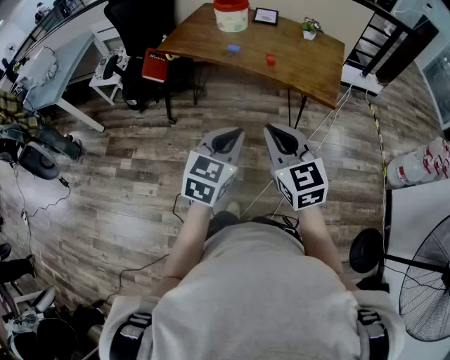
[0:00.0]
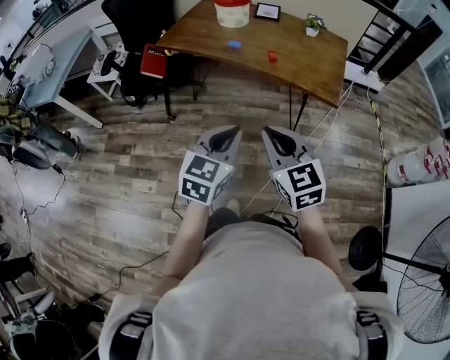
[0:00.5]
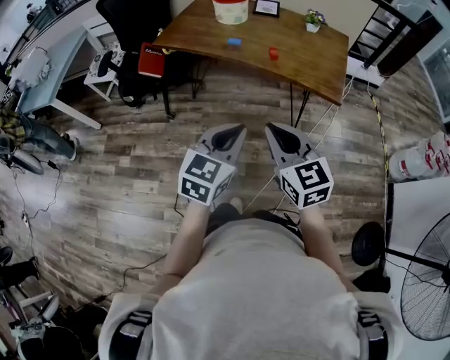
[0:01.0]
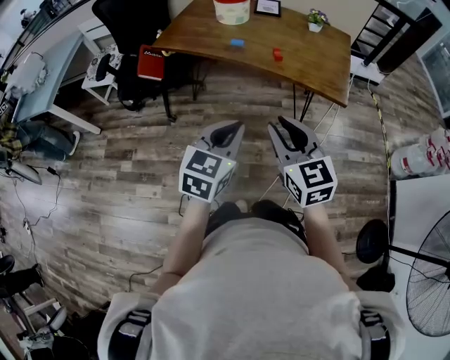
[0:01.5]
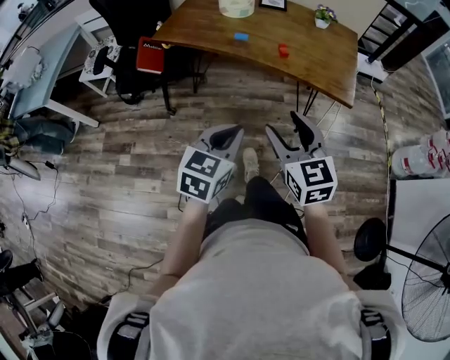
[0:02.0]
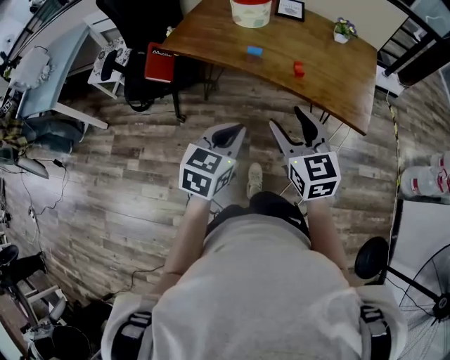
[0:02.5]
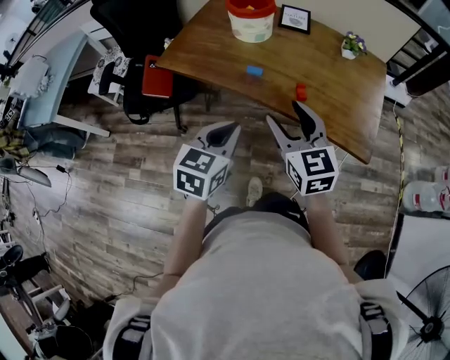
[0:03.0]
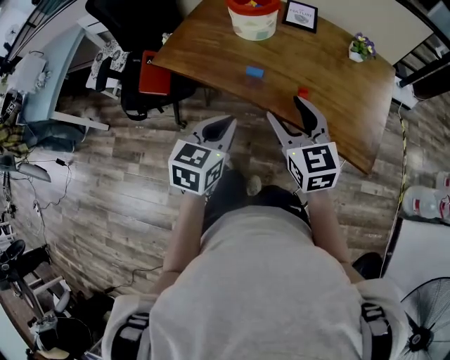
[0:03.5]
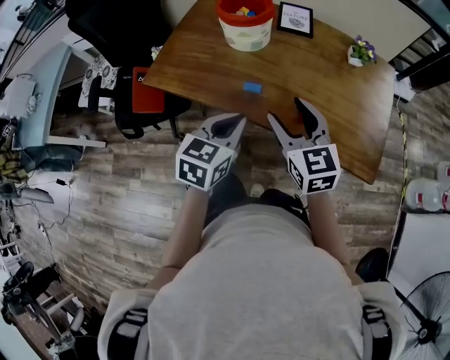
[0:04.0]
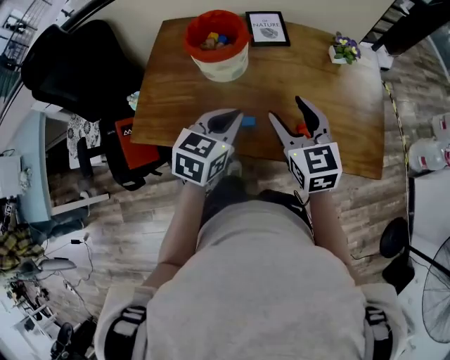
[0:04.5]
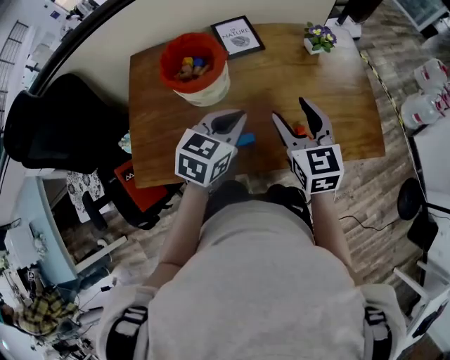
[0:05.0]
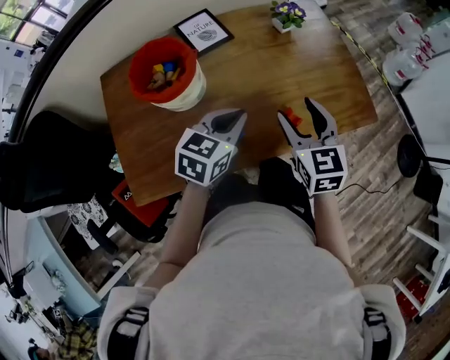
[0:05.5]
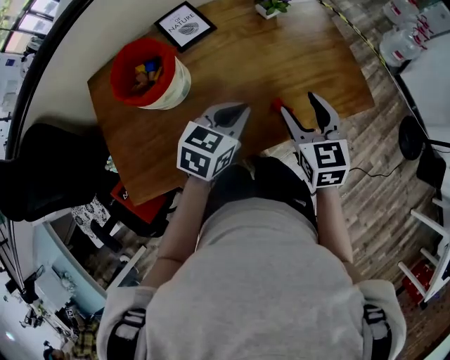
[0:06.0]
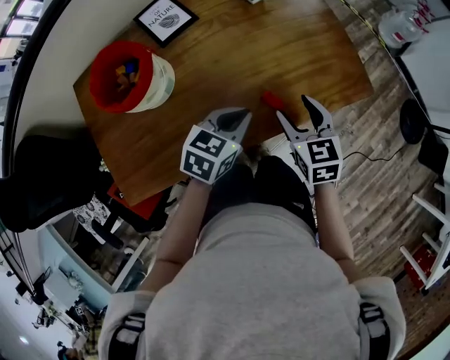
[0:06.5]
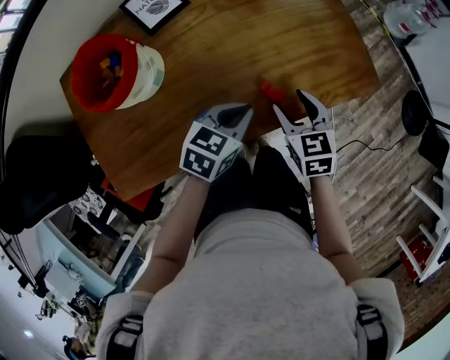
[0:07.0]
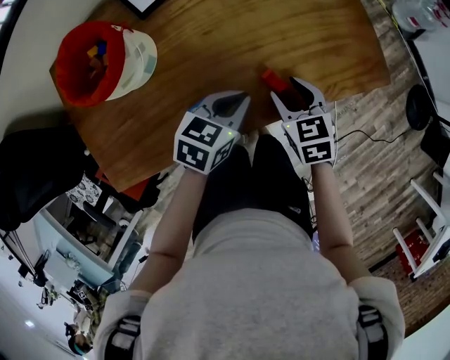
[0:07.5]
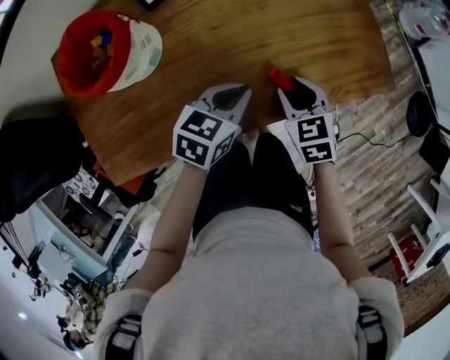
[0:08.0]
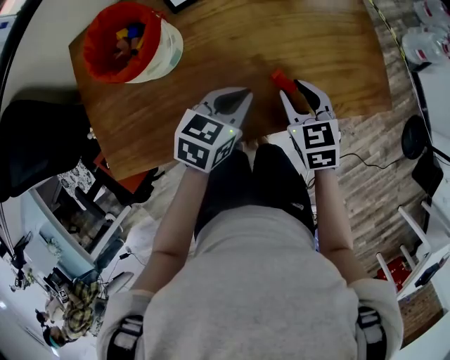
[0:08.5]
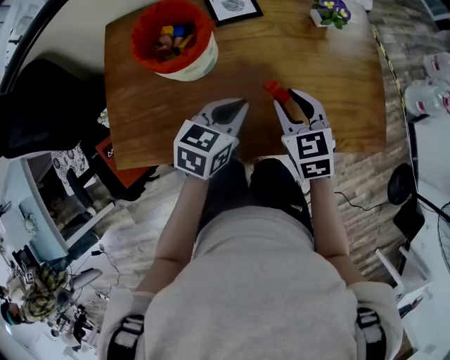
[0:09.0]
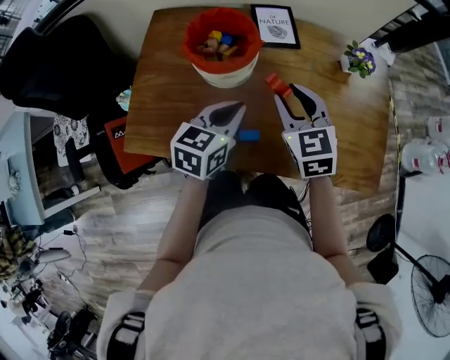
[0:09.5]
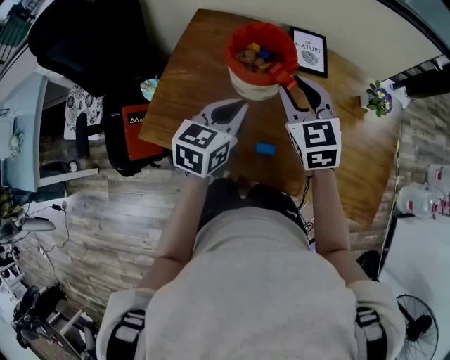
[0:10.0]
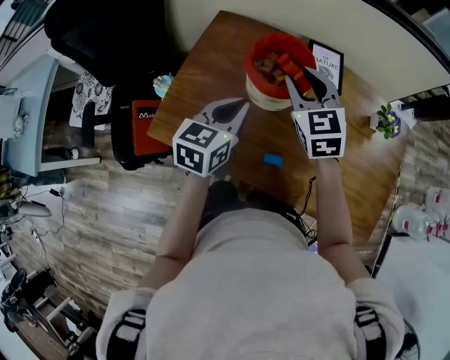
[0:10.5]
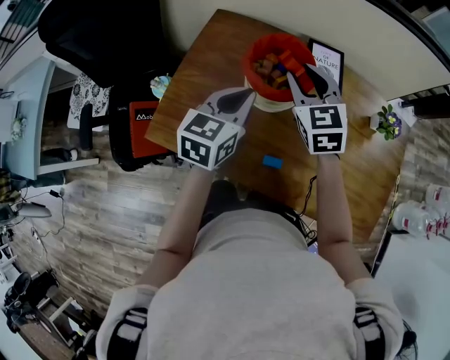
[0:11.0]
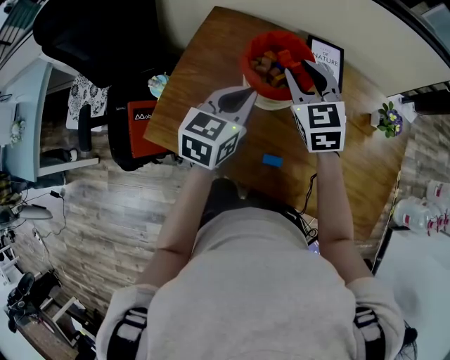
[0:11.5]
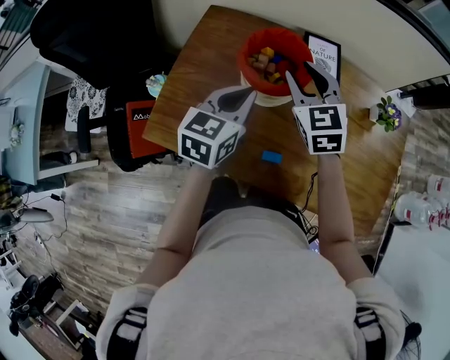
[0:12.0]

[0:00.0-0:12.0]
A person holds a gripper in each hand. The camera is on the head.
0:00.0 to 0:02.0: The left gripper shifts about 10 cm forward and to the left, while the right gripper goes some 10 cm forward, and opens its fingers.
0:02.0 to 0:04.0: The two grippers go approximately 35 cm forward.
0:04.0 to 0:06.0: The right gripper changes place by about 15 cm, and turns by about 50 degrees; the left gripper shifts by some 20 cm, and rotates approximately 50 degrees.
0:06.0 to 0:08.0: The left gripper goes roughly 10 cm downward; the right gripper is displaced downward by roughly 15 cm, changes its angle by some 20 degrees, and closes its fingers.
0:08.0 to 0:10.0: The right gripper shifts by roughly 35 cm, and changes its angle by roughly 50 degrees. The left gripper ends up about 30 cm from where it was, and changes its angle by about 50 degrees.
0:10.0 to 0:12.0: The two grippers go some 5 cm forward.

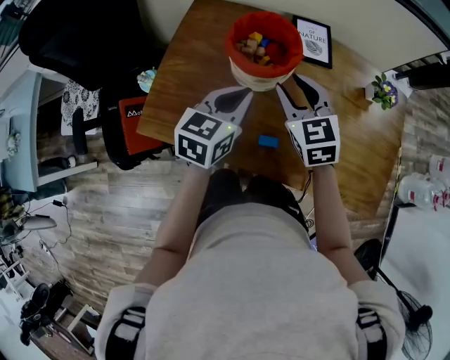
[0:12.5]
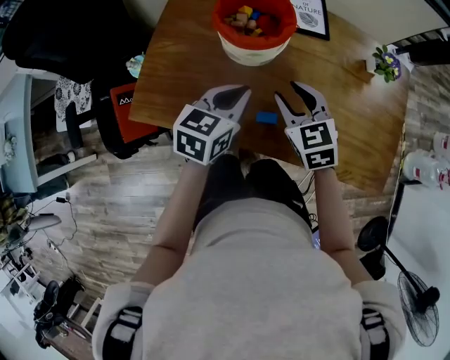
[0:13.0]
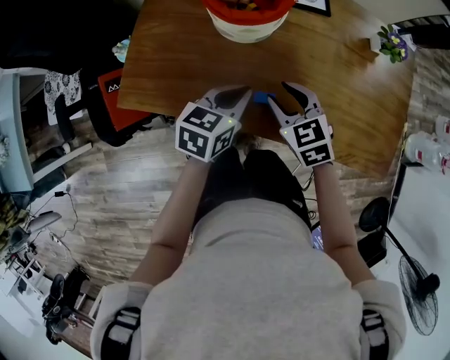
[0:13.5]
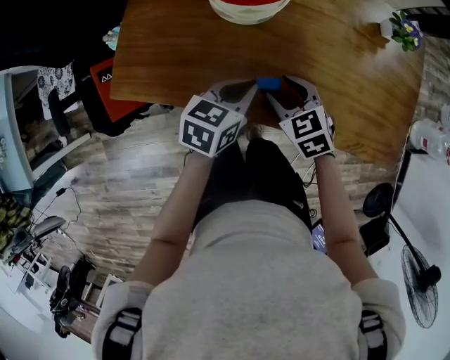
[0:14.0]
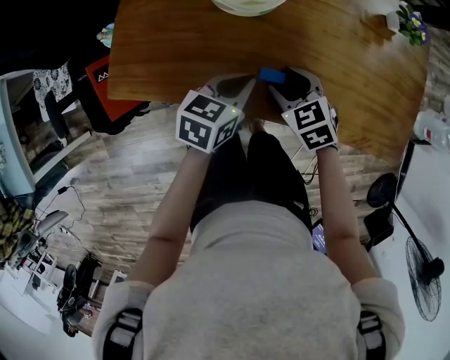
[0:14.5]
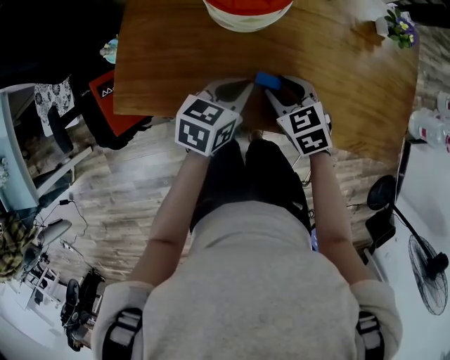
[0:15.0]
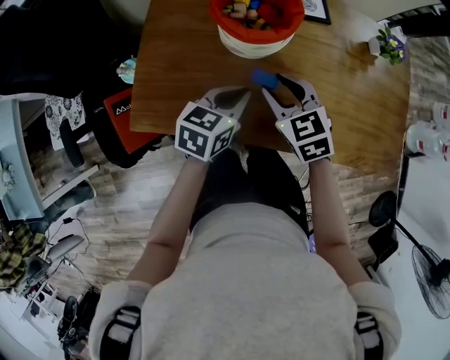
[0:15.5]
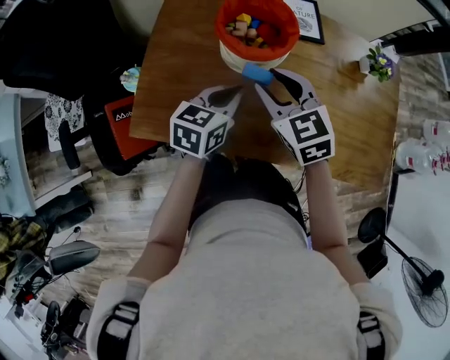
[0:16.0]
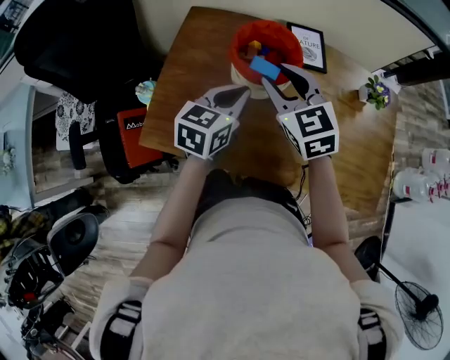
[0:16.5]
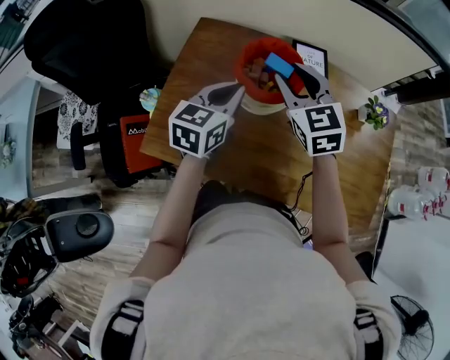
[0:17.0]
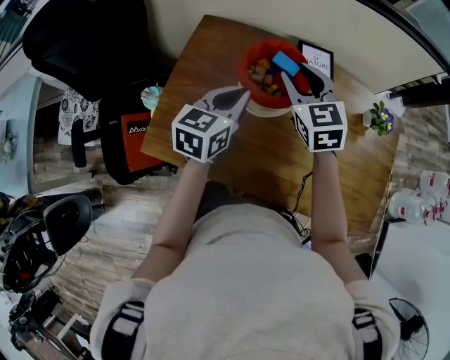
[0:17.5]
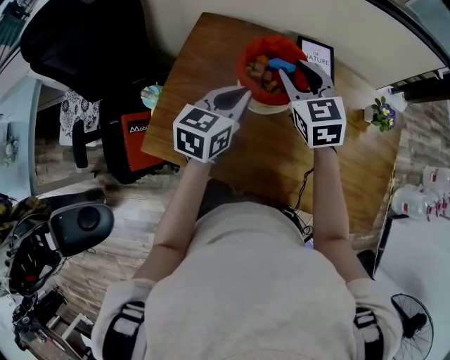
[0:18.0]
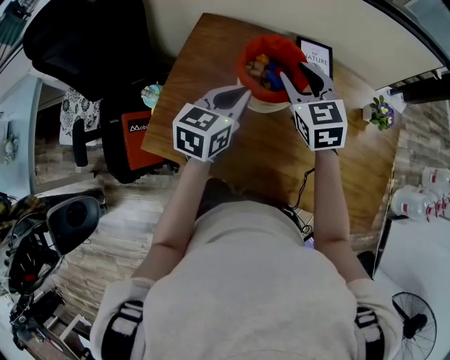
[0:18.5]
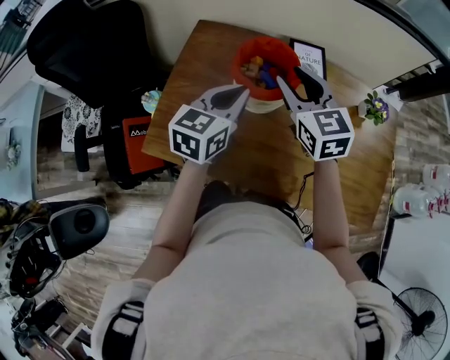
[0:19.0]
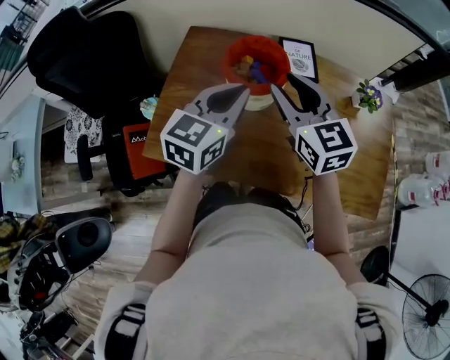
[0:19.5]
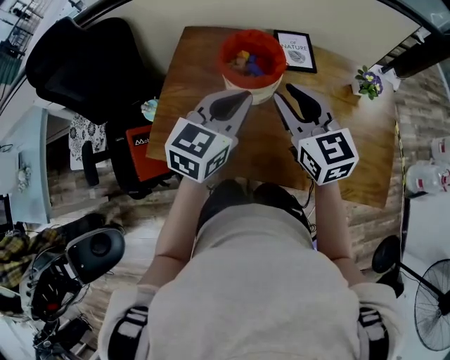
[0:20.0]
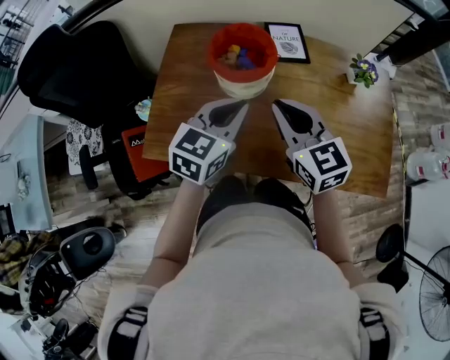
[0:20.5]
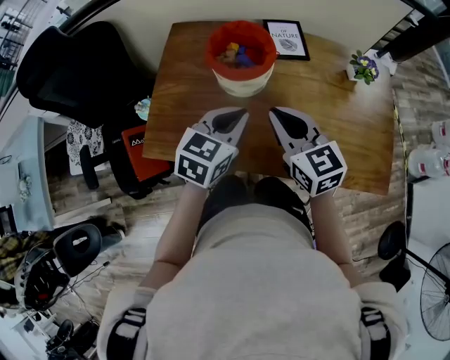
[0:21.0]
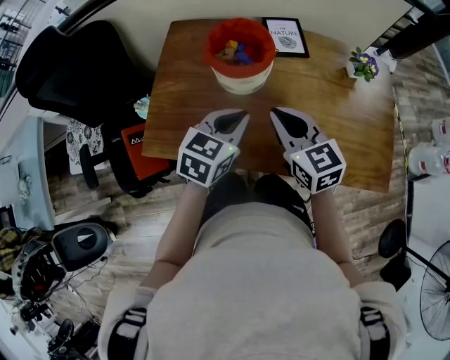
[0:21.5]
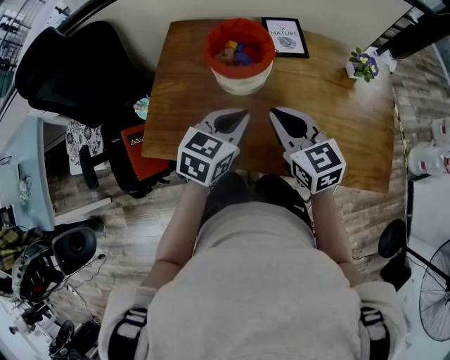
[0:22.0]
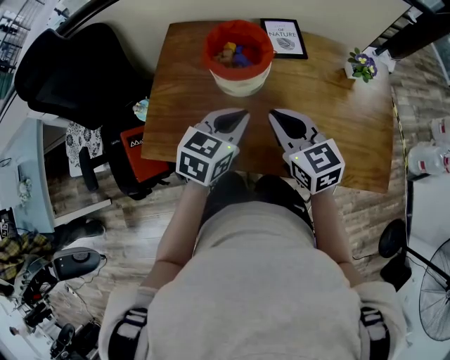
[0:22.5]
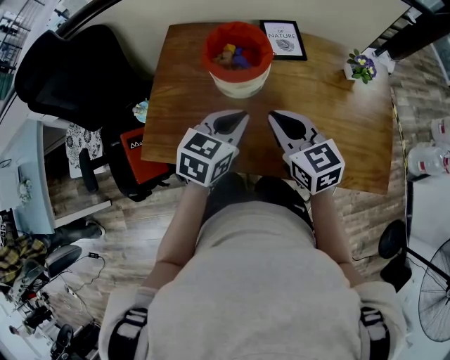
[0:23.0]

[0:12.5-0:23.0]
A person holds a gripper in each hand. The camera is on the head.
0:12.5 to 0:14.5: Both grippers move downward and backward, roughly 20 cm. The left gripper rotates approximately 20 degrees; the right gripper turns by about 30 degrees.
0:14.5 to 0:16.5: The two grippers go some 25 cm upward, forward and to the left. The right gripper swivels about 30 degrees. The left gripper swivels some 20 degrees.
0:16.5 to 0:19.0: The left gripper ends up approximately 5 cm from where it was.
0:19.0 to 0:21.0: The left gripper heads backward and to the right, covering some 10 cm. The right gripper moves backward, about 15 cm, and closes up.
0:21.0 to 0:23.0: The grippers make only small movements.

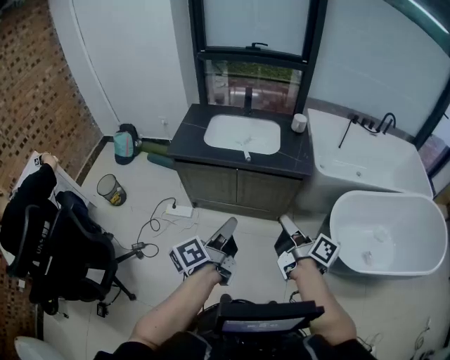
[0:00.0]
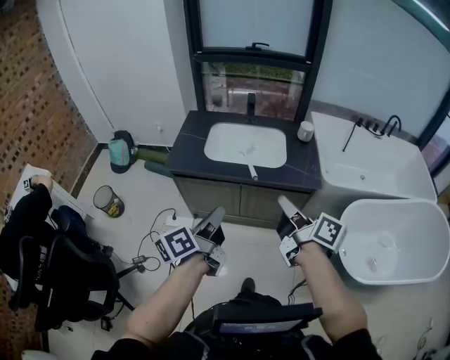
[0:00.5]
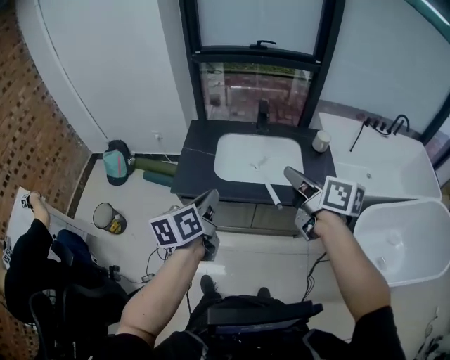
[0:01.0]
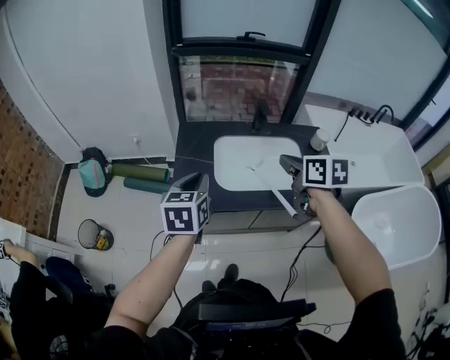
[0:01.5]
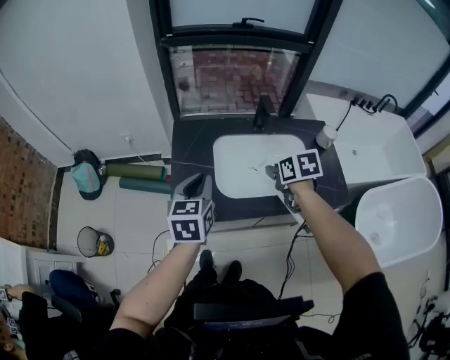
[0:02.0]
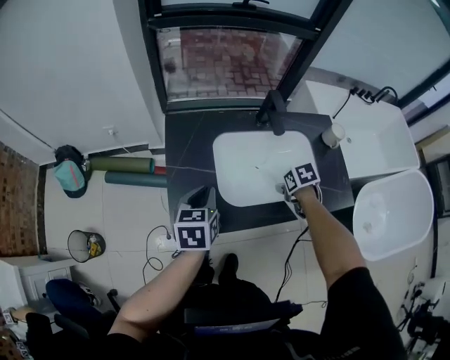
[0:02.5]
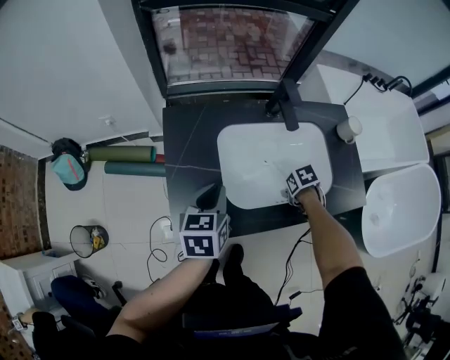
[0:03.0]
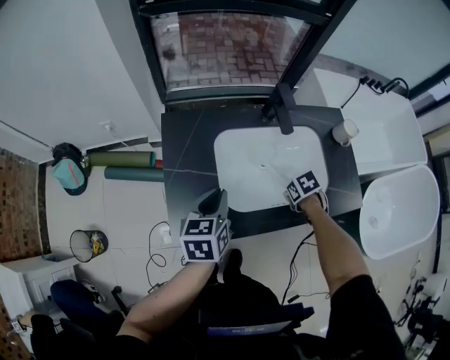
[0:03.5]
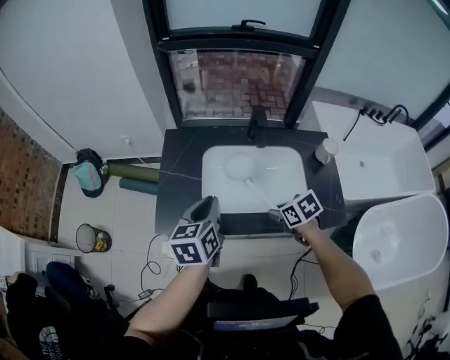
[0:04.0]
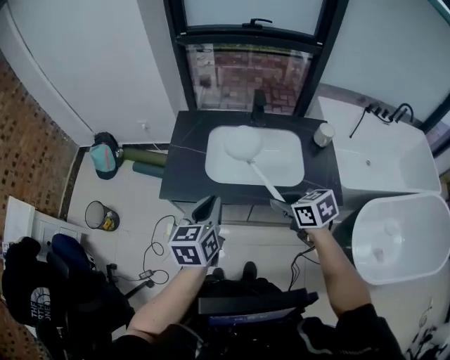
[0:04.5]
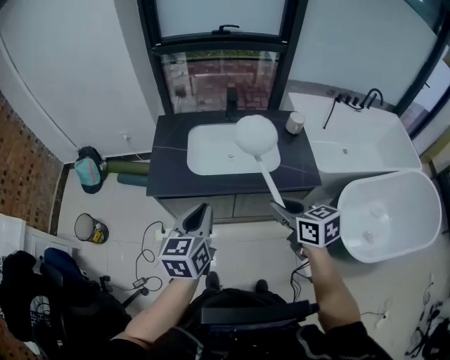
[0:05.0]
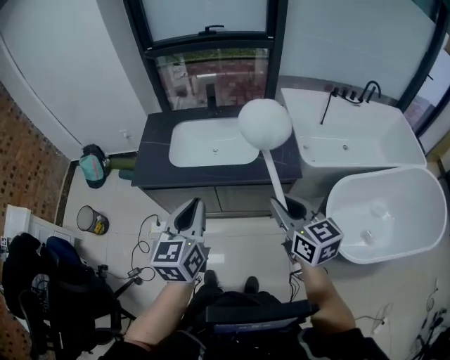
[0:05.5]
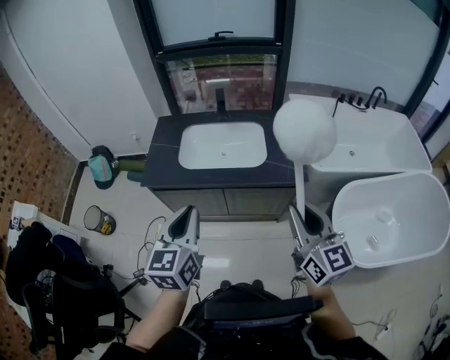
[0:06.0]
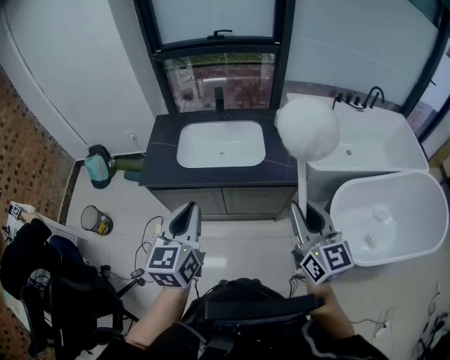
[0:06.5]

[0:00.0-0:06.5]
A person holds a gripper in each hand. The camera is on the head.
0:00.0 to 0:02.0: Both grippers are carried forward and to the left, roughly 90 cm. The left gripper rotates around the line of its fingers by roughly 60 degrees, clockwise from behind. Meanwhile the right gripper tips its fingers downward by about 60 degrees, and opens.
0:02.0 to 0:04.5: The left gripper travels downward and back again, roughly 15 cm each way. Meanwhile the right gripper reaches some 30 cm downward, then returns, and rotates approximately 30 degrees.
0:04.5 to 0:06.5: The right gripper is displaced backward, to the right and upward by some 50 cm, and tilts its fingers approximately 40 degrees upward. The left gripper is displaced backward and to the right by roughly 35 cm.
